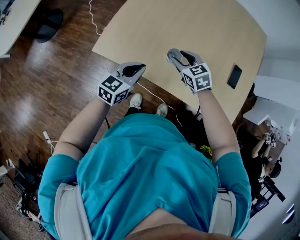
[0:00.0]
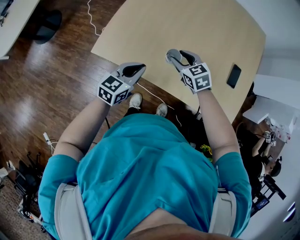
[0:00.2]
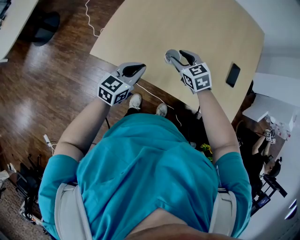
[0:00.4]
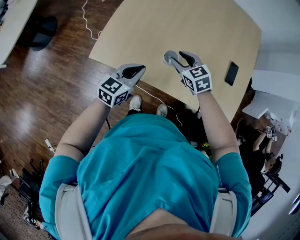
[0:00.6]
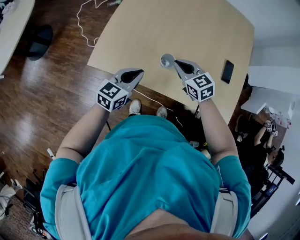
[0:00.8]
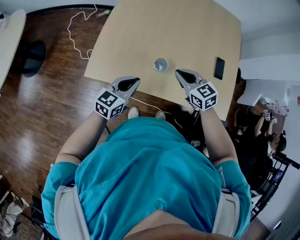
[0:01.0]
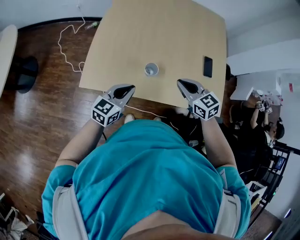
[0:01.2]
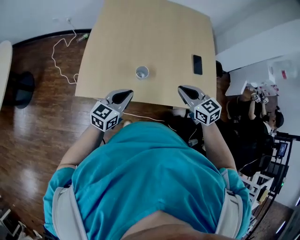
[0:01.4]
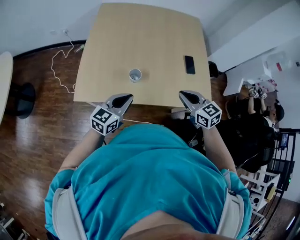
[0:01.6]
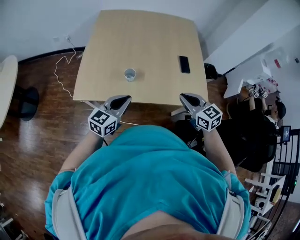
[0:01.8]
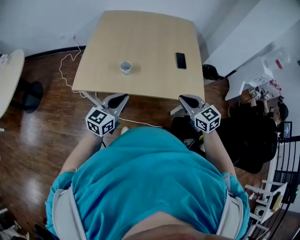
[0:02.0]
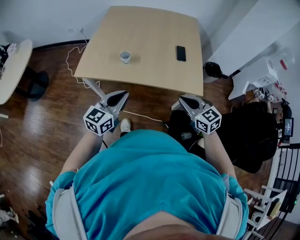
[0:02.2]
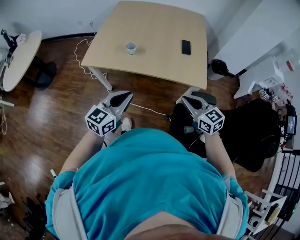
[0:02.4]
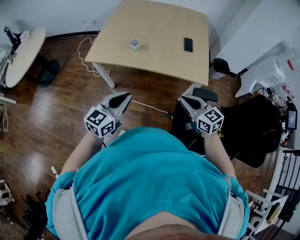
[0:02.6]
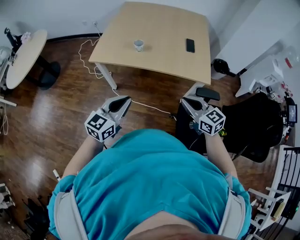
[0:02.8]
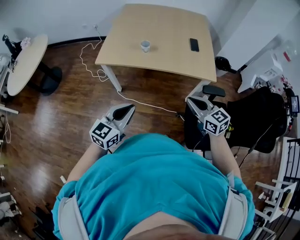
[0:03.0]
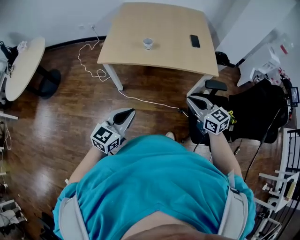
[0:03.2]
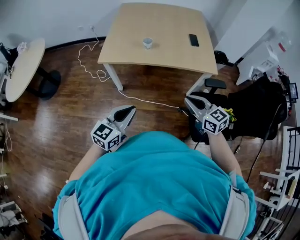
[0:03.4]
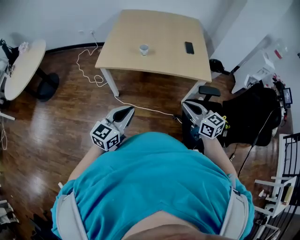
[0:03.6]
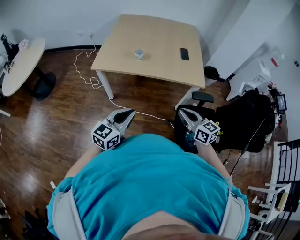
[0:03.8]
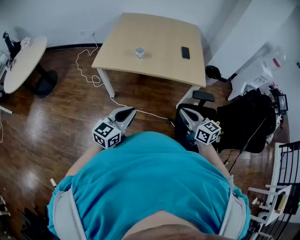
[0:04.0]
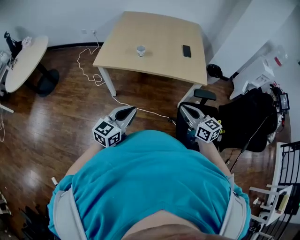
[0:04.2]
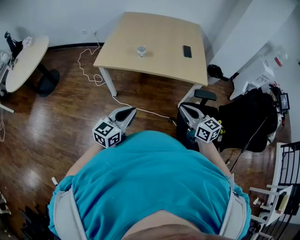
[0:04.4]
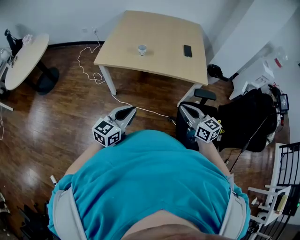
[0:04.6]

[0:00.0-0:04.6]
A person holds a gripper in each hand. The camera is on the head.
0:00.0 to 0:01.6: The left gripper travels upward, backward and to the right by roughly 10 cm, and turns by some 20 degrees; the right gripper is displaced backward, to the right and upward by about 30 cm, turns by roughly 30 degrees, and closes up.
0:01.6 to 0:03.0: Both grippers travel together backward, approximately 35 cm.
0:03.0 to 0:04.6: The right gripper moves backward, roughly 5 cm, and moves approximately 5 cm to the left and comes back. Meanwhile the left gripper changes place by roughly 5 cm.

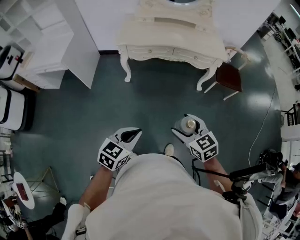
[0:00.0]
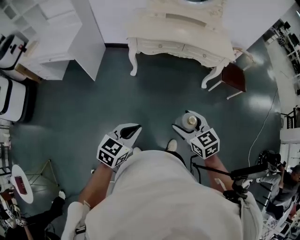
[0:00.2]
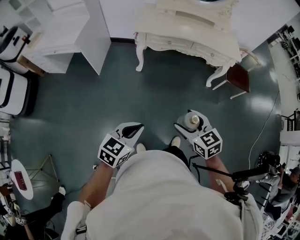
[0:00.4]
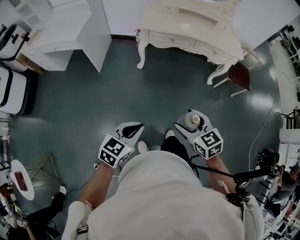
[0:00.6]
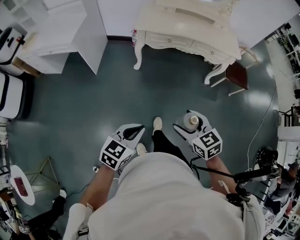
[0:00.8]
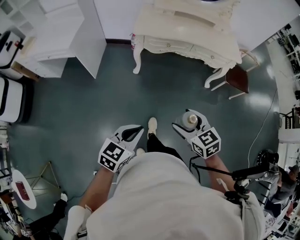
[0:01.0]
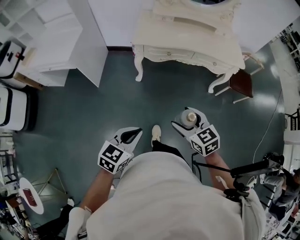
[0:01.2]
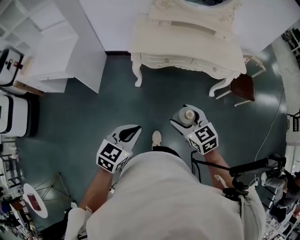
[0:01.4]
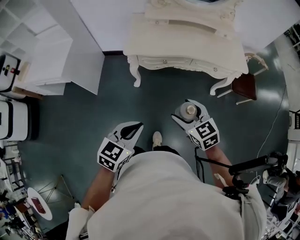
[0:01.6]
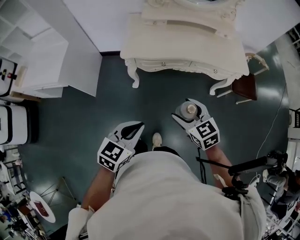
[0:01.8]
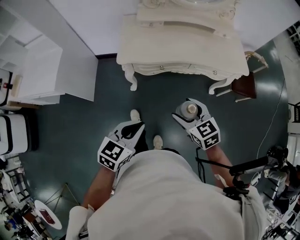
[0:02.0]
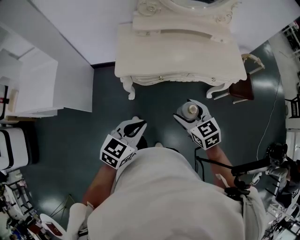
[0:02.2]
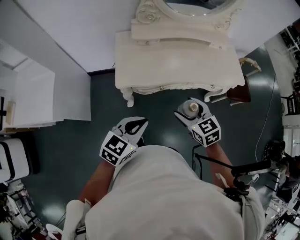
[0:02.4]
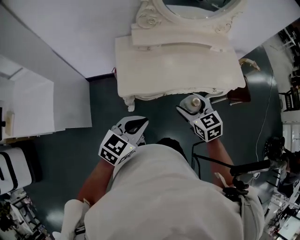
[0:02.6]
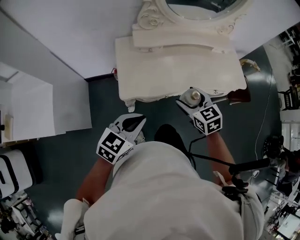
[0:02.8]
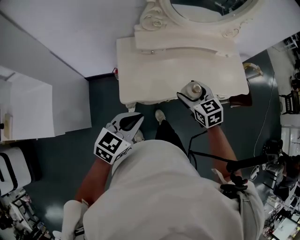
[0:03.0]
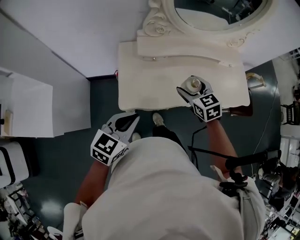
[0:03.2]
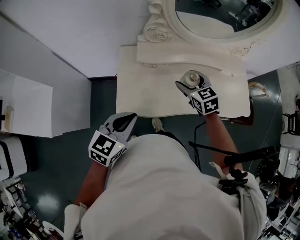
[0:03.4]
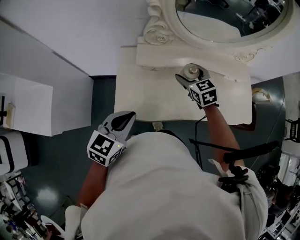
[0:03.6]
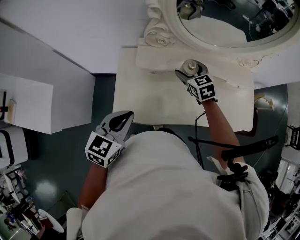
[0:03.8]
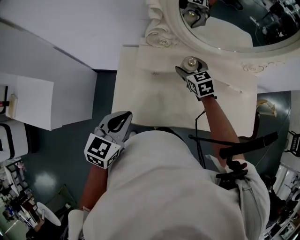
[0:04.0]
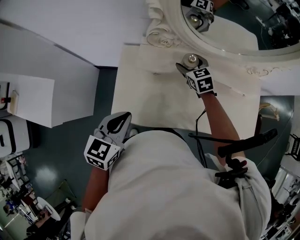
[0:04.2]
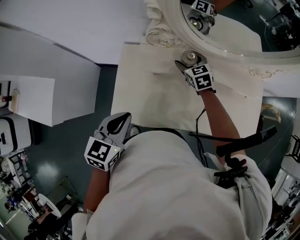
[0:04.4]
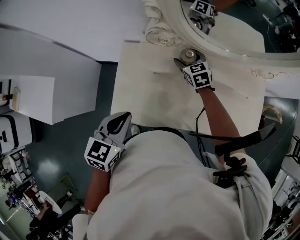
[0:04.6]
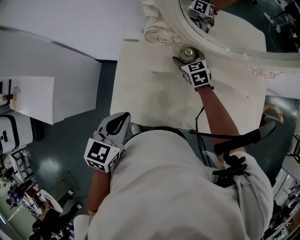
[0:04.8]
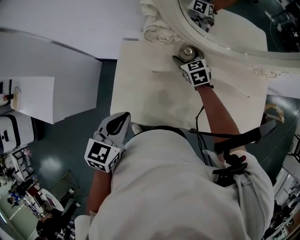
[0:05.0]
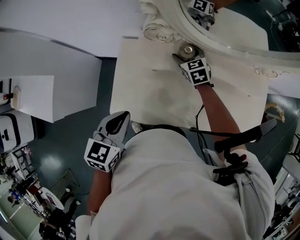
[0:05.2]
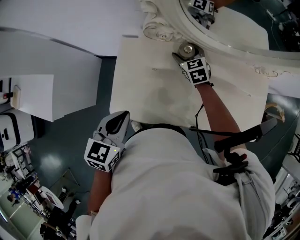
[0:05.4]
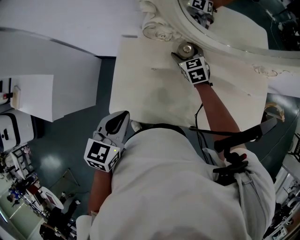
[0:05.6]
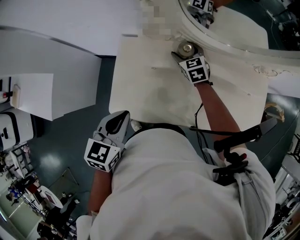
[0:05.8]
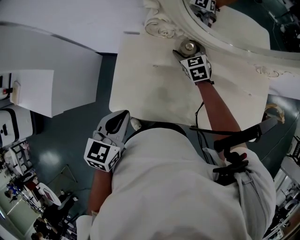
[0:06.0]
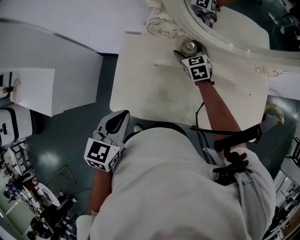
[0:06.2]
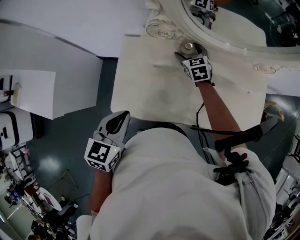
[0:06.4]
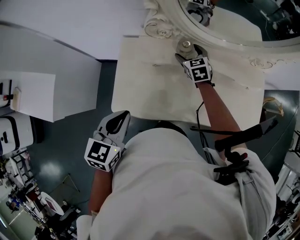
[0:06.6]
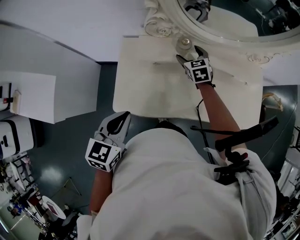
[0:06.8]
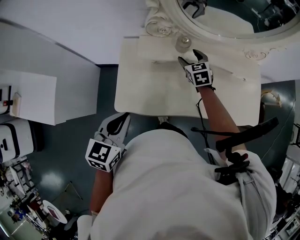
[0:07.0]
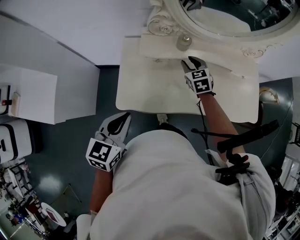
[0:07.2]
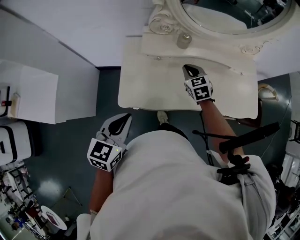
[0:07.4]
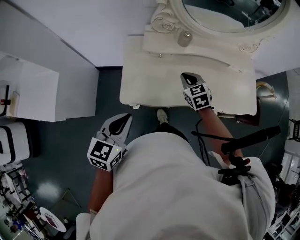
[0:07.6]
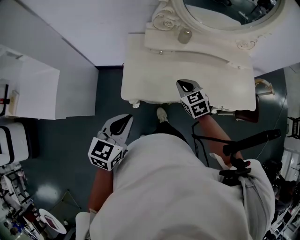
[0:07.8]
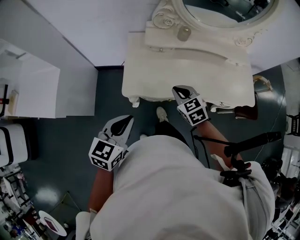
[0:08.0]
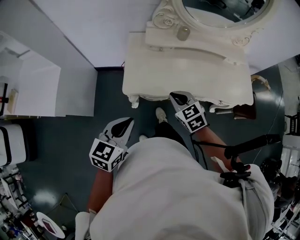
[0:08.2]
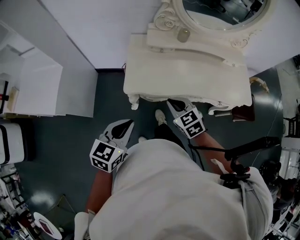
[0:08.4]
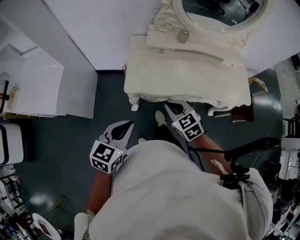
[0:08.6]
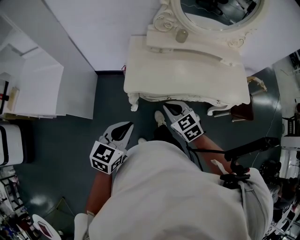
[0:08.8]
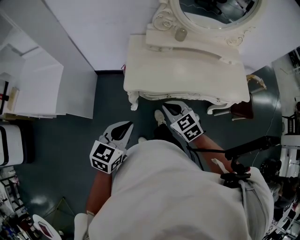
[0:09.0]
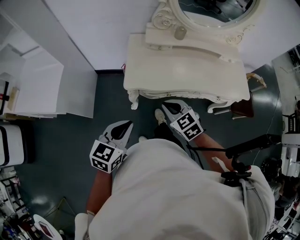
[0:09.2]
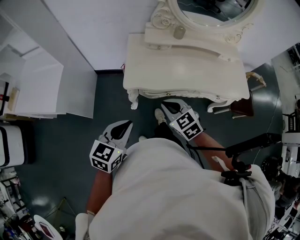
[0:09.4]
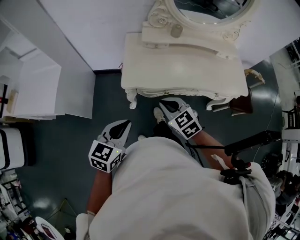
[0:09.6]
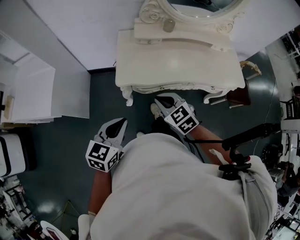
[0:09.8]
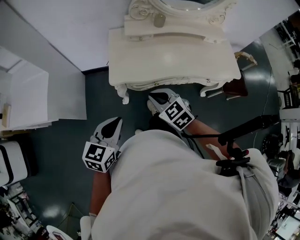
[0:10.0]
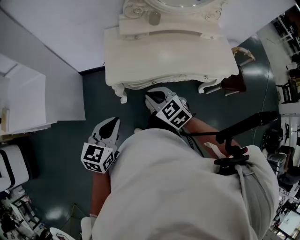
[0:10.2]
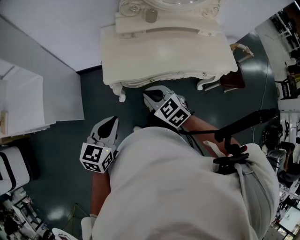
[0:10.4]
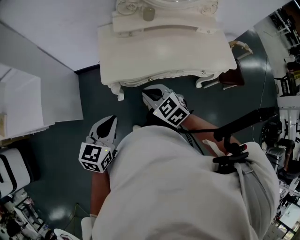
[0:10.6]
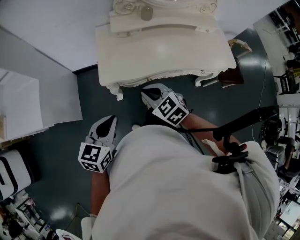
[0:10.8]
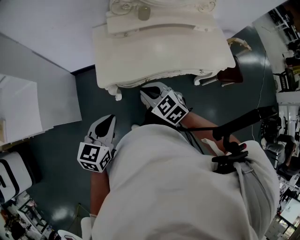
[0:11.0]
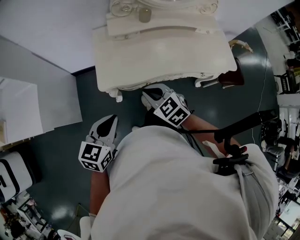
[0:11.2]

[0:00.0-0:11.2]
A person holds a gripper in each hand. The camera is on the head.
0:00.0 to 0:01.6: Both grippers move forward and to the left, roughly 30 cm.
0:01.6 to 0:03.2: The two grippers travel together, forward, approximately 50 cm.
0:03.2 to 0:04.8: The left gripper is displaced forward by about 15 cm, and changes its angle by roughly 30 degrees; the right gripper is displaced forward by approximately 30 cm.
0:04.8 to 0:06.4: There are only small adjustments of the grippers.
0:06.4 to 0:08.0: The left gripper travels backward by approximately 20 cm, while the right gripper travels backward by about 40 cm, and closes.
0:08.0 to 0:09.6: The left gripper moves backward, about 10 cm. The right gripper is displaced backward and to the left by approximately 20 cm.
0:09.6 to 0:11.2: The grippers both shift forward by about 5 cm.

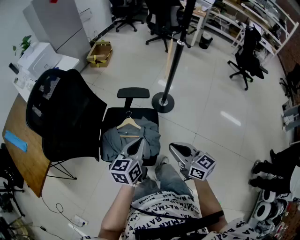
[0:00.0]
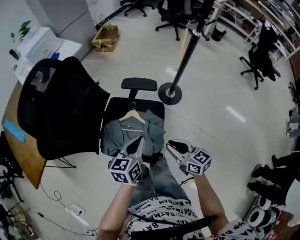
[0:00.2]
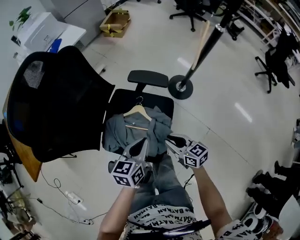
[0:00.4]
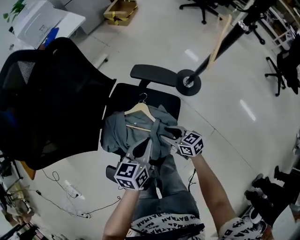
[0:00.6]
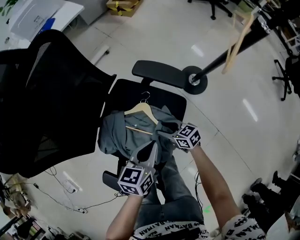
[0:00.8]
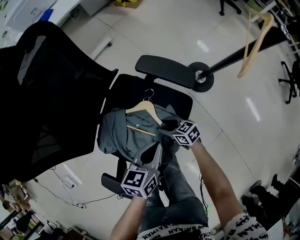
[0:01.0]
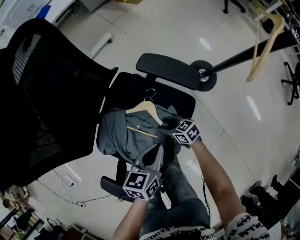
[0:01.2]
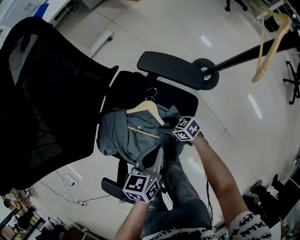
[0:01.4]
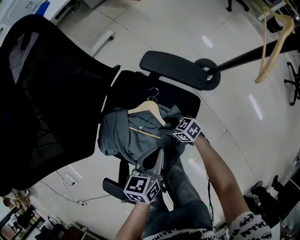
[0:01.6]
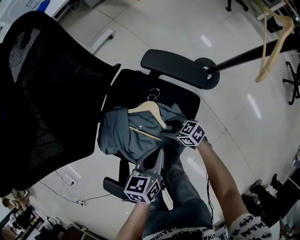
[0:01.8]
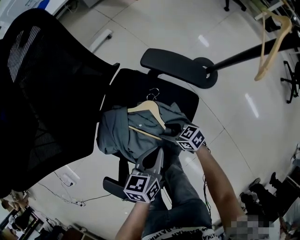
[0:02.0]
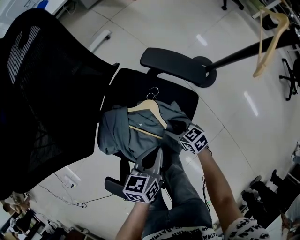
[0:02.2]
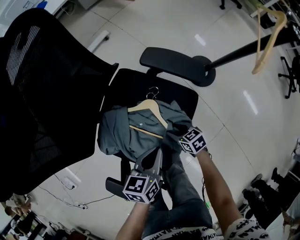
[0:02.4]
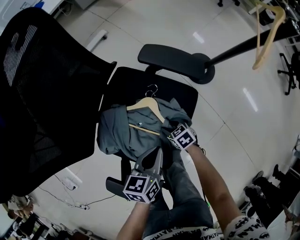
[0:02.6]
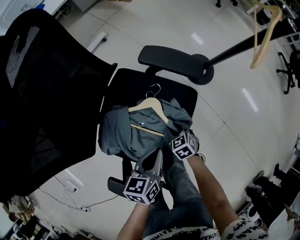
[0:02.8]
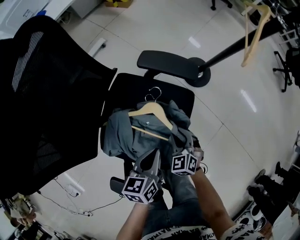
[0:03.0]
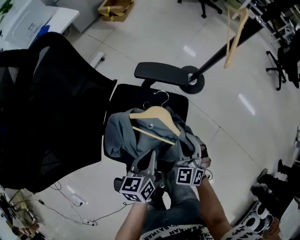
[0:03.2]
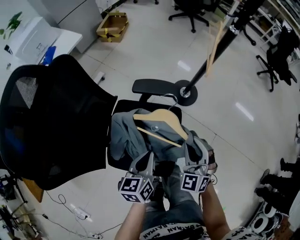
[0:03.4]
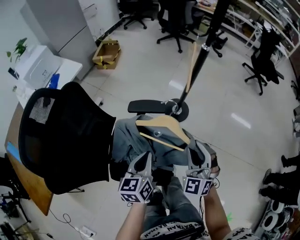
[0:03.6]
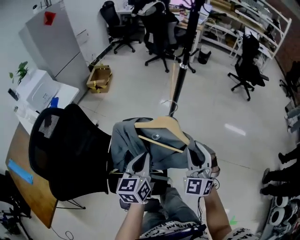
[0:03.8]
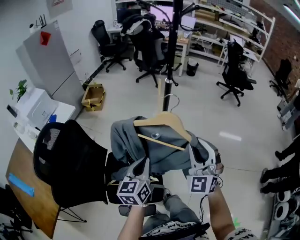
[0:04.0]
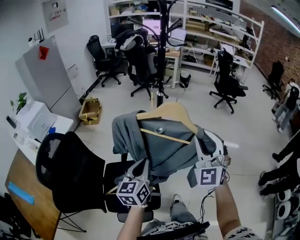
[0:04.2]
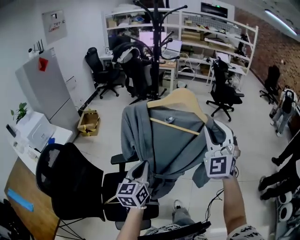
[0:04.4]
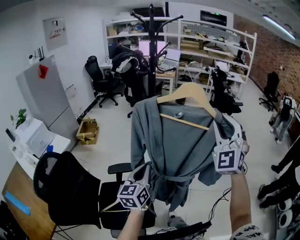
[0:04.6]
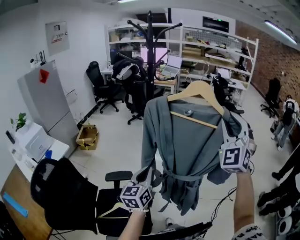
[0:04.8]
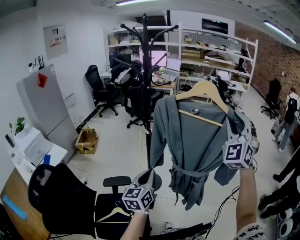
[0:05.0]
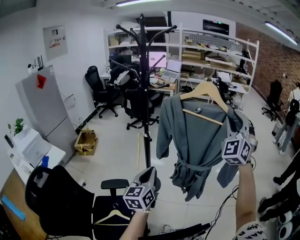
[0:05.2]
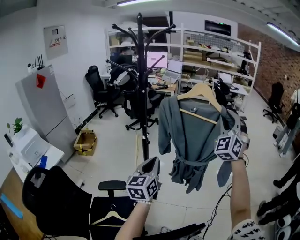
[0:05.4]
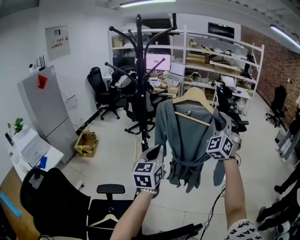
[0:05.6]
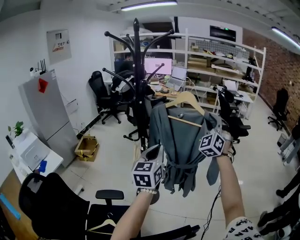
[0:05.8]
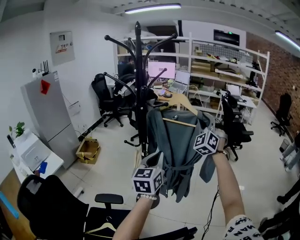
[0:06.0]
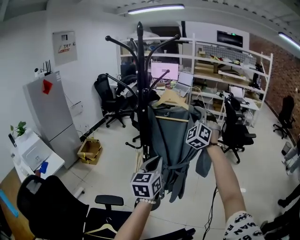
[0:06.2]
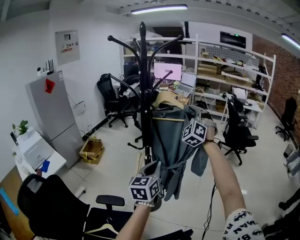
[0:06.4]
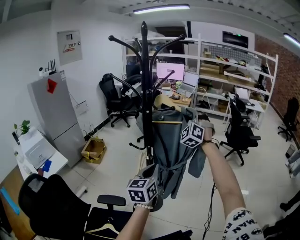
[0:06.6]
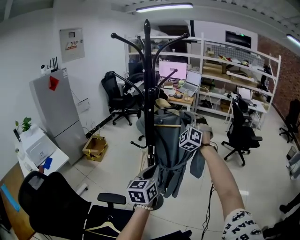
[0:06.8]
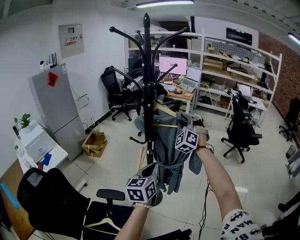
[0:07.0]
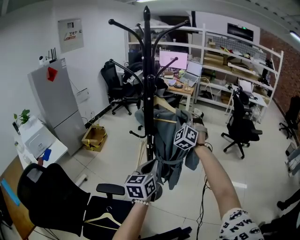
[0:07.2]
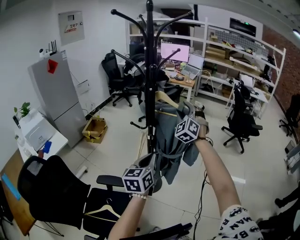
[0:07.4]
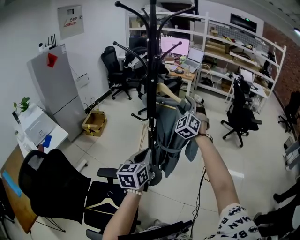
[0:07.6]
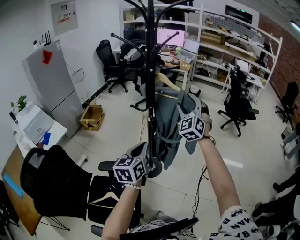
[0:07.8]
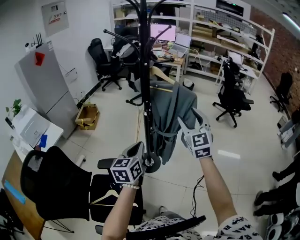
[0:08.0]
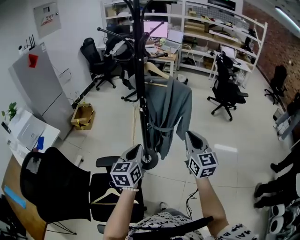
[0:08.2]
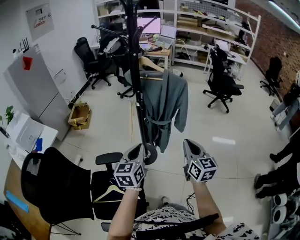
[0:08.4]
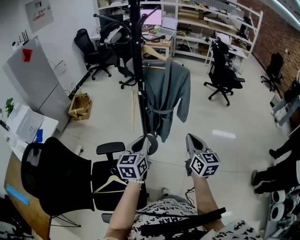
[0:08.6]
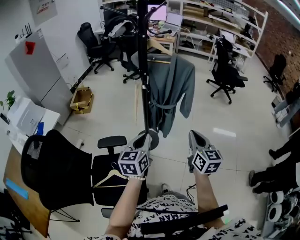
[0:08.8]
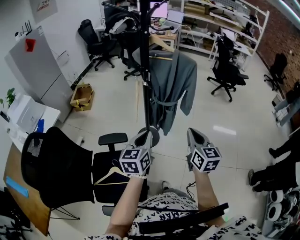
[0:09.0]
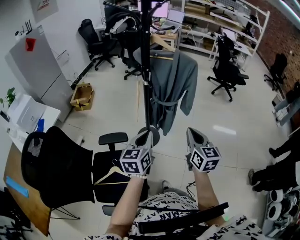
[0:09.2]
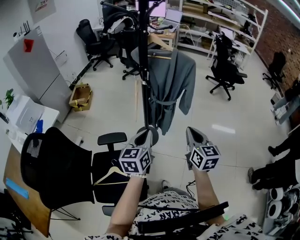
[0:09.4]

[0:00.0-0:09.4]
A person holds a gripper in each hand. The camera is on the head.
0:00.0 to 0:01.6: The right gripper shifts approximately 50 cm downward, turns by some 60 degrees, and opens its fingers, while the left gripper heads downward, covering roughly 30 cm, and rotates about 30 degrees.
0:01.6 to 0:03.2: The left gripper heads upward, covering approximately 5 cm. The right gripper moves up and down over some 25 cm, changing direction 2 times, swivels some 70 degrees, and closes up.
0:03.2 to 0:04.8: The left gripper heads upward, covering some 40 cm, and tilts its fingers some 30 degrees upward. Meanwhile the right gripper travels upward by approximately 70 cm, and angles its fingers upward, by about 40 degrees.
0:04.8 to 0:06.2: The grippers both shift forward by about 30 cm.
0:06.2 to 0:07.8: The right gripper is displaced downward, backward and to the left by some 15 cm, and opens. The left gripper travels to the left, downward and backward by approximately 15 cm.
0:07.8 to 0:09.4: The right gripper moves backward and downward, some 35 cm, rolls clockwise, seen from behind, by some 60 degrees, and closes. Meanwhile the left gripper moves backward and downward, approximately 10 cm.
